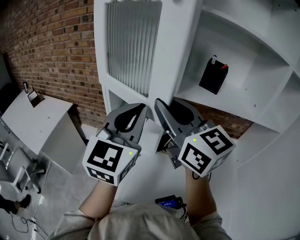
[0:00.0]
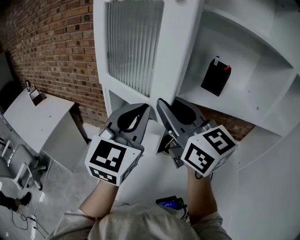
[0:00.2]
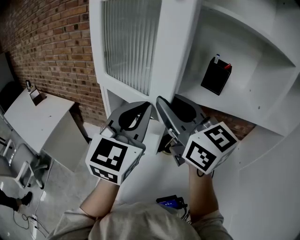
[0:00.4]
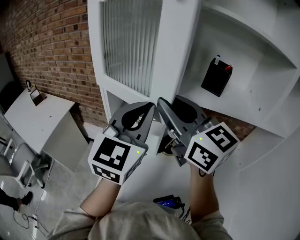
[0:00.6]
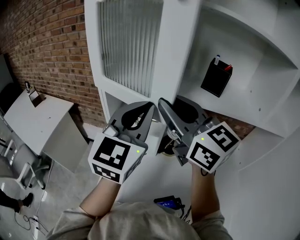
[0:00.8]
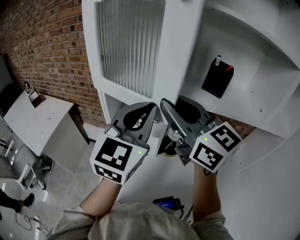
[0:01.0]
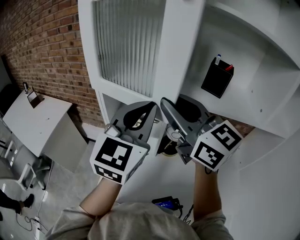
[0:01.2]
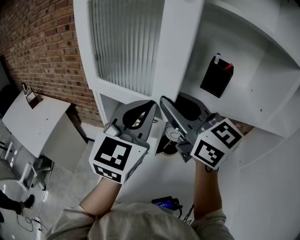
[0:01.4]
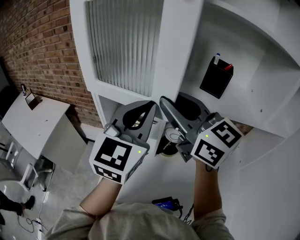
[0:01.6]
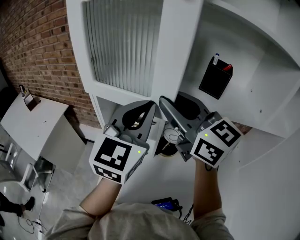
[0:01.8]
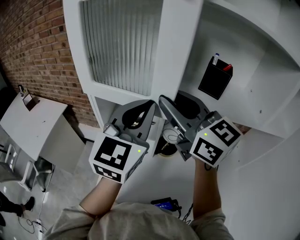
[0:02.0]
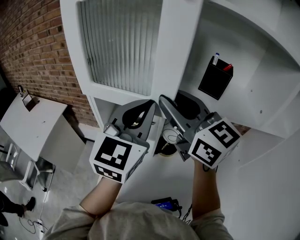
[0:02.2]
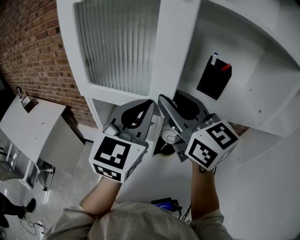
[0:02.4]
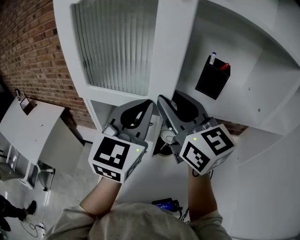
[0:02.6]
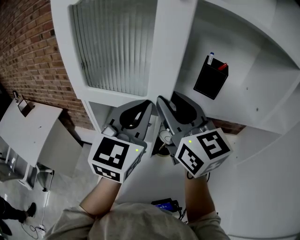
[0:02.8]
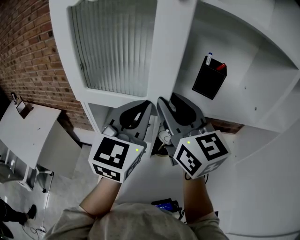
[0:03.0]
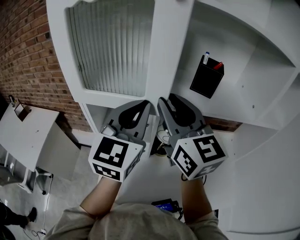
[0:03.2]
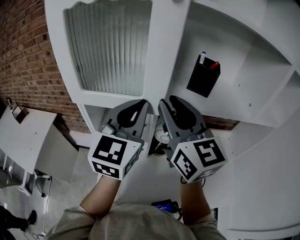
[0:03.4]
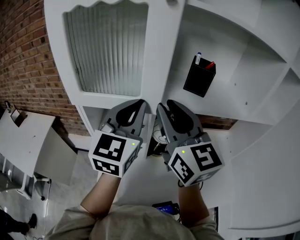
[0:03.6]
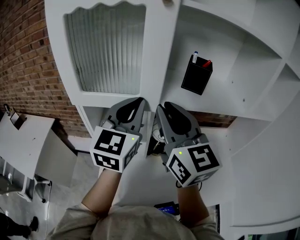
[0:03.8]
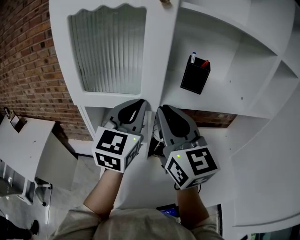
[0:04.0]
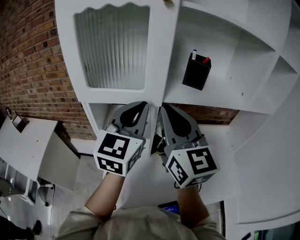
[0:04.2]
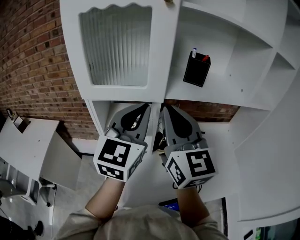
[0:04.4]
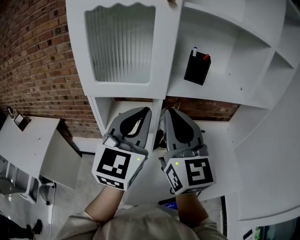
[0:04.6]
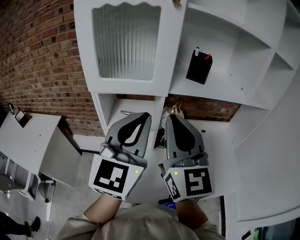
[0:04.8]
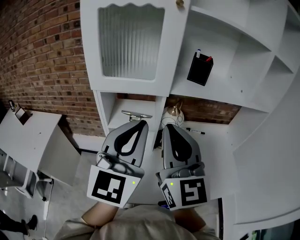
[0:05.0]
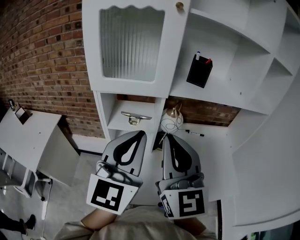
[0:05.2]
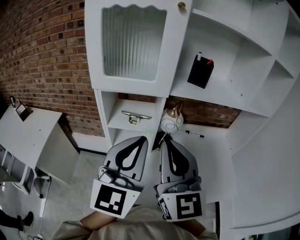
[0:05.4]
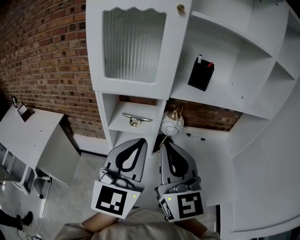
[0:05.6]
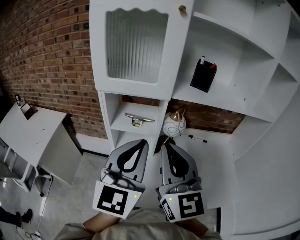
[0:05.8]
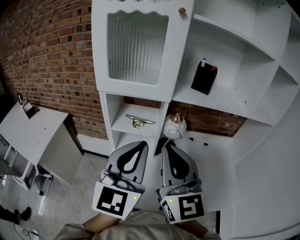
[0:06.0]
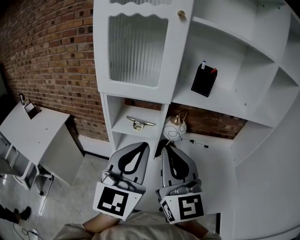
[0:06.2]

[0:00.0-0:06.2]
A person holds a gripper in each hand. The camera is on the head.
0.0 to 1.6 s: The right gripper shifts about 5 cm forward, while the left gripper is displaced forward and to the right by about 10 cm.
1.6 to 3.2 s: The right gripper changes its angle by approximately 20 degrees.
3.2 to 4.6 s: The two grippers go approximately 10 cm backward. The right gripper closes its fingers.
4.6 to 6.2 s: The left gripper is displaced backward by roughly 10 cm, while the right gripper goes some 10 cm backward and downward.

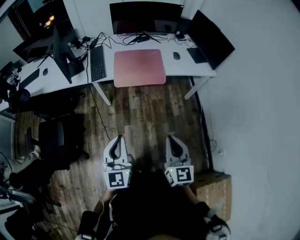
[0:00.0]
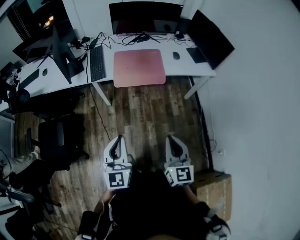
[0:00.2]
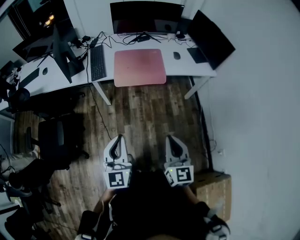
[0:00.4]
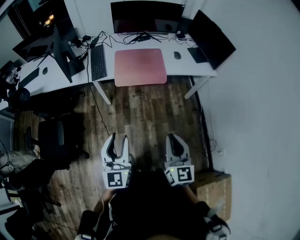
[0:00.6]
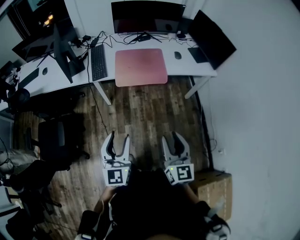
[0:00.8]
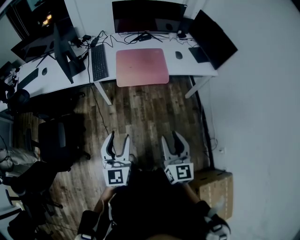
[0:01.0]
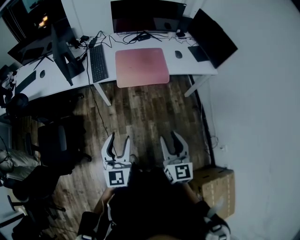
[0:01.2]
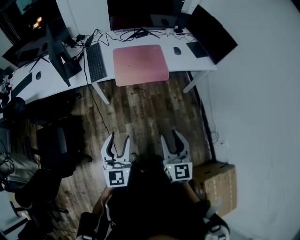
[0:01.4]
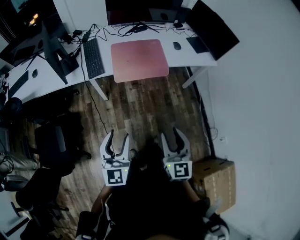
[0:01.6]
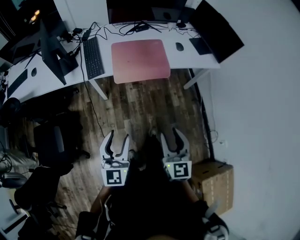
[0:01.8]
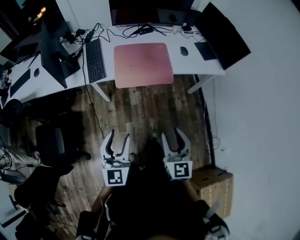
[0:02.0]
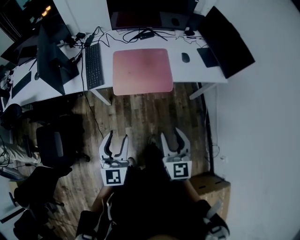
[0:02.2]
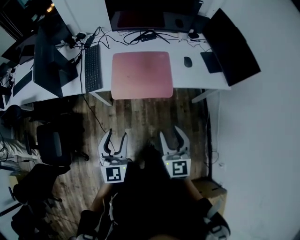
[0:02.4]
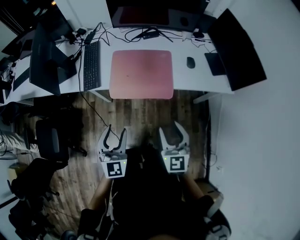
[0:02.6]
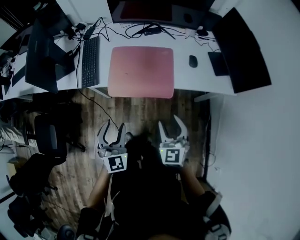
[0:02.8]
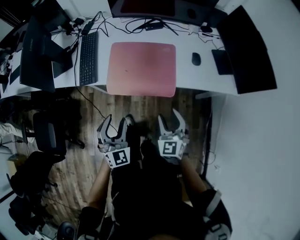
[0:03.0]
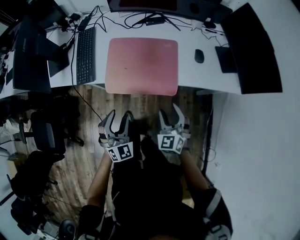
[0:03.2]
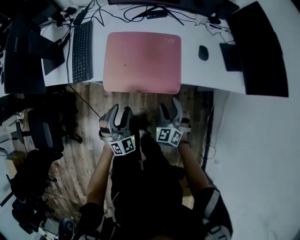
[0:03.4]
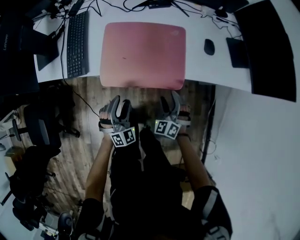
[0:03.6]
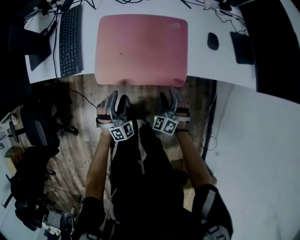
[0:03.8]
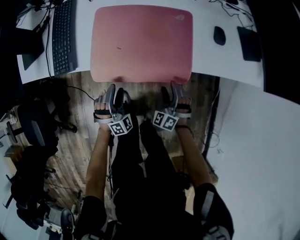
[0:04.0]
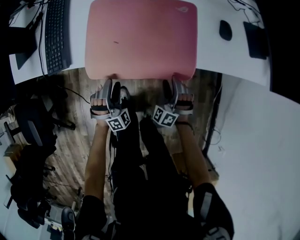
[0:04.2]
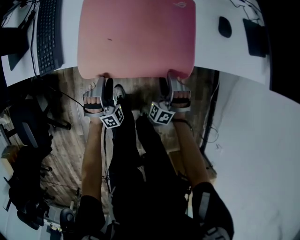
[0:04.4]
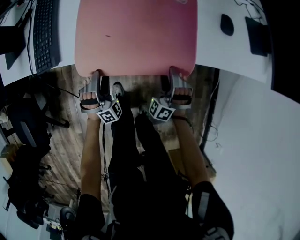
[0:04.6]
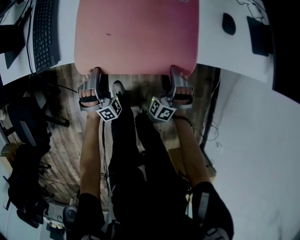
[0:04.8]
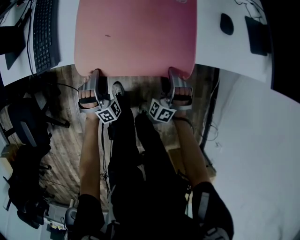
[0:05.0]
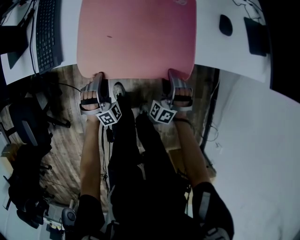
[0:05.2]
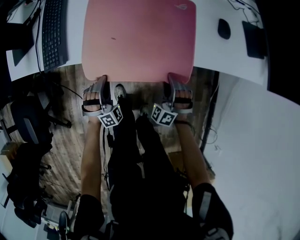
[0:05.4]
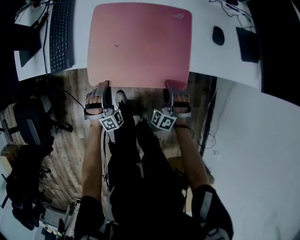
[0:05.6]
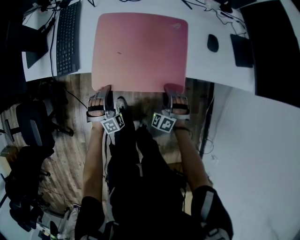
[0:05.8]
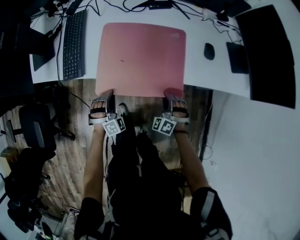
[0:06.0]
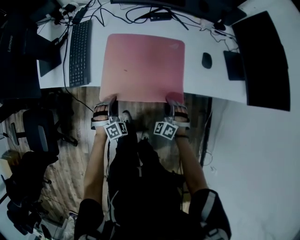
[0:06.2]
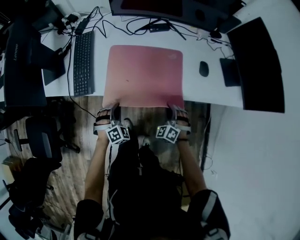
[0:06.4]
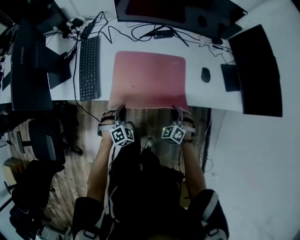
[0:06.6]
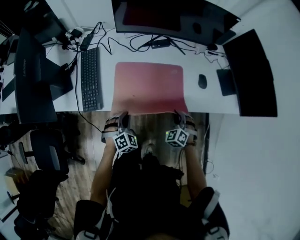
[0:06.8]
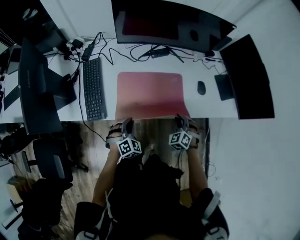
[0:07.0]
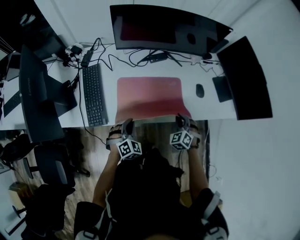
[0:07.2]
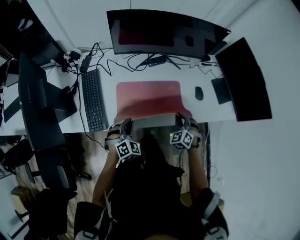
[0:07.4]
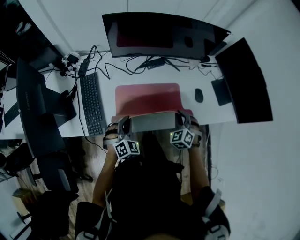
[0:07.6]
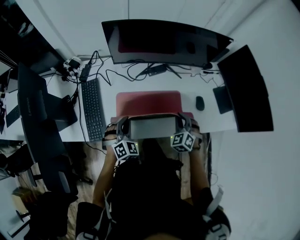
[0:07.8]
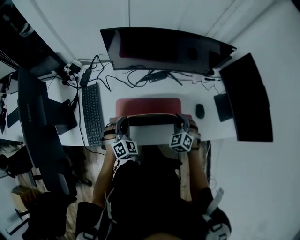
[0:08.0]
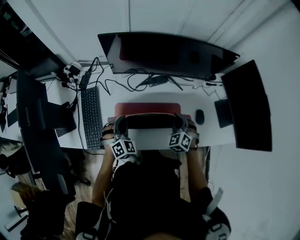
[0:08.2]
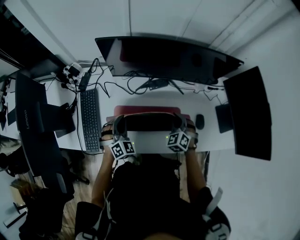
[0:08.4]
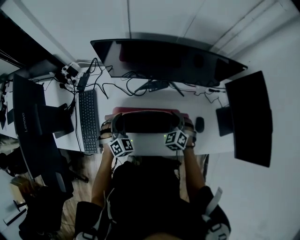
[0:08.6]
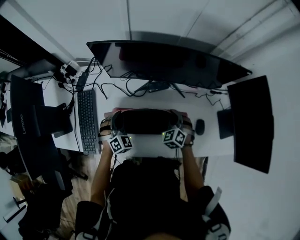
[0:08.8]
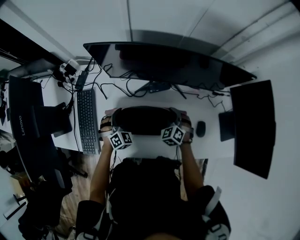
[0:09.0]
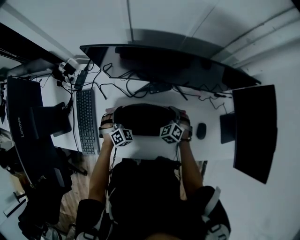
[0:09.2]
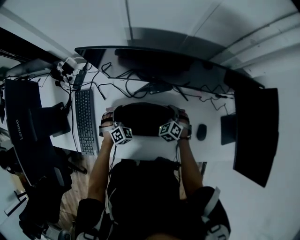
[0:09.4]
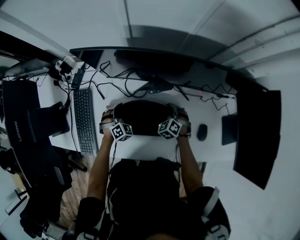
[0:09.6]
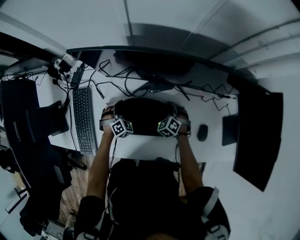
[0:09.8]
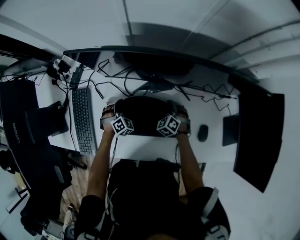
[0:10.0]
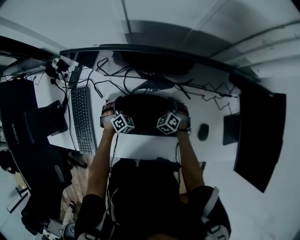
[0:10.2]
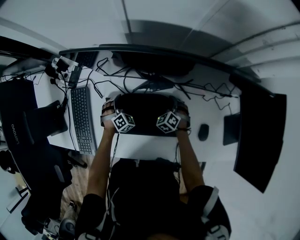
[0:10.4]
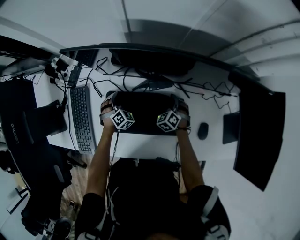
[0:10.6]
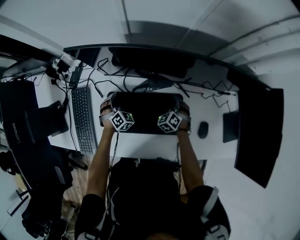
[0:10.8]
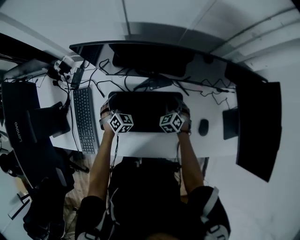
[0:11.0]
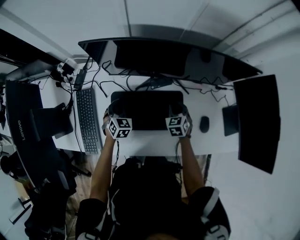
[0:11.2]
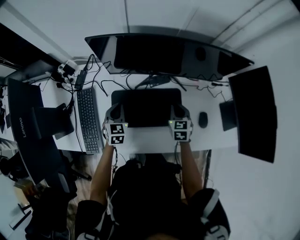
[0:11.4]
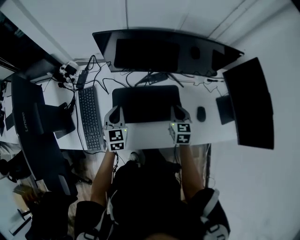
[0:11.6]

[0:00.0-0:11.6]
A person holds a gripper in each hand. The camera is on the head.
0.0 to 1.4 s: The two grippers go some 10 cm to the left. The right gripper opens up, while the left gripper opens its fingers.
1.4 to 2.8 s: Both grippers move forward and to the right, some 30 cm. The right gripper rotates roughly 30 degrees. Meanwhile the left gripper swivels approximately 30 degrees.
2.8 to 4.4 s: Both grippers travel together downward and forward, approximately 40 cm. The right gripper twists approximately 50 degrees counterclockwise, seen from behind. The left gripper twists about 50 degrees clockwise, seen from behind.
4.4 to 5.8 s: The left gripper ends up some 5 cm from where it was, and closes its fingers; the right gripper ends up about 5 cm from where it was, and closes.
5.8 to 7.2 s: The two grippers go about 20 cm upward and forward. The left gripper swivels some 30 degrees, while the right gripper changes its angle by approximately 30 degrees.
7.2 to 8.8 s: Both grippers travel together forward, roughly 25 cm.
8.8 to 10.2 s: The two grippers go roughly 15 cm downward and forward.
10.2 to 11.6 s: Both grippers travel together upward and backward, roughly 25 cm. The left gripper rolls counterclockwise, seen from behind, by roughly 40 degrees, while the right gripper rotates around the line of its fingers by about 50 degrees, clockwise from behind.

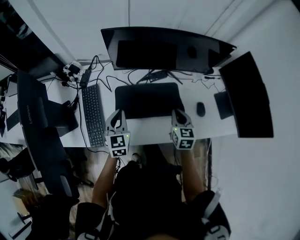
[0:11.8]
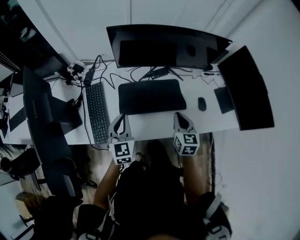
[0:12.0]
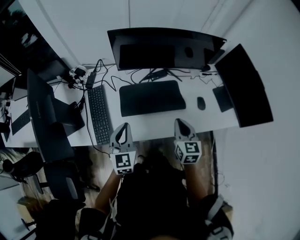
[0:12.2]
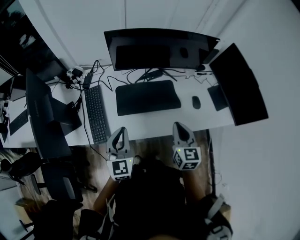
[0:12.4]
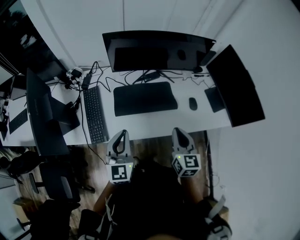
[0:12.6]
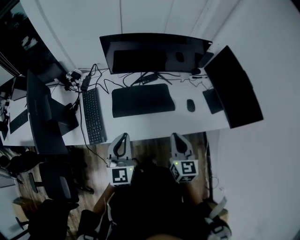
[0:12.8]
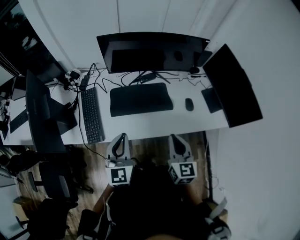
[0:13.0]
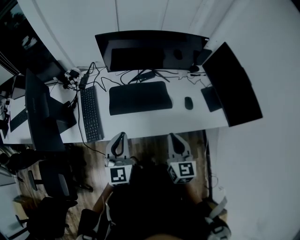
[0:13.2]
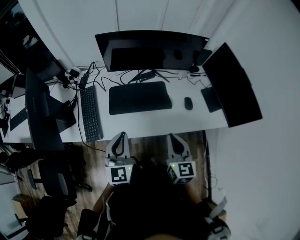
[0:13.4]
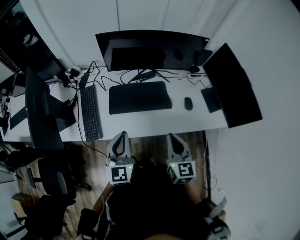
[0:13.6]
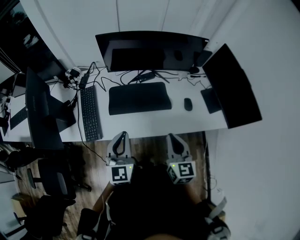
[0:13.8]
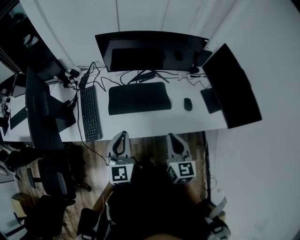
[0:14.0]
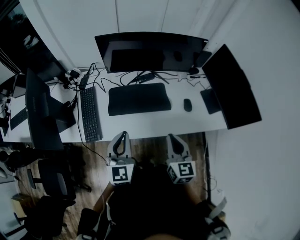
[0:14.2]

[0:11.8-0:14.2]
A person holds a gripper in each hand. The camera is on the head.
11.8 to 13.0 s: The two grippers go approximately 25 cm backward and upward.
13.0 to 14.2 s: The grippers move only a little.

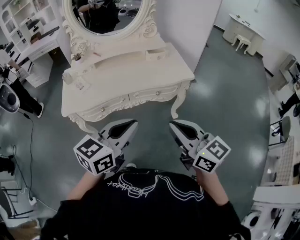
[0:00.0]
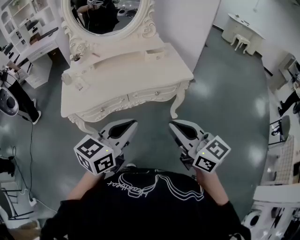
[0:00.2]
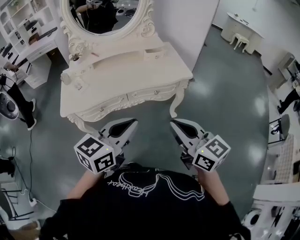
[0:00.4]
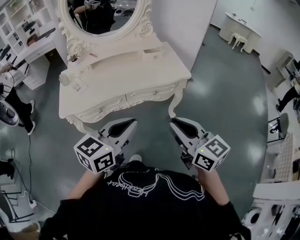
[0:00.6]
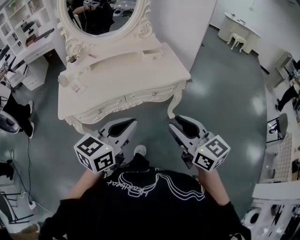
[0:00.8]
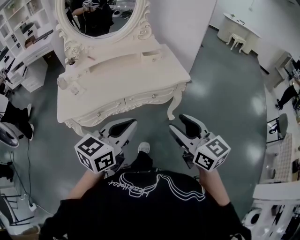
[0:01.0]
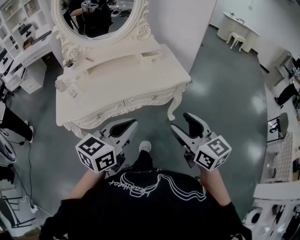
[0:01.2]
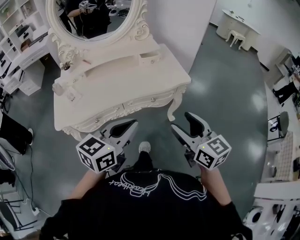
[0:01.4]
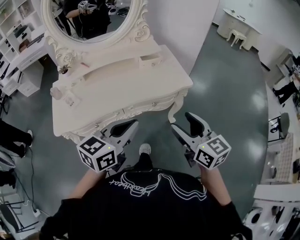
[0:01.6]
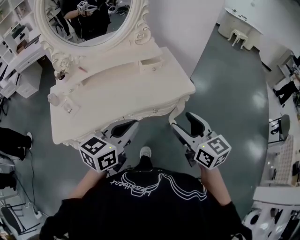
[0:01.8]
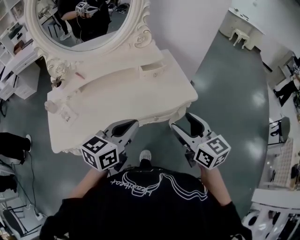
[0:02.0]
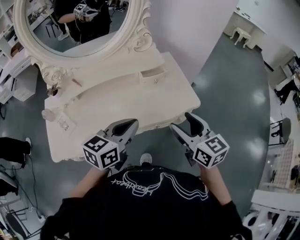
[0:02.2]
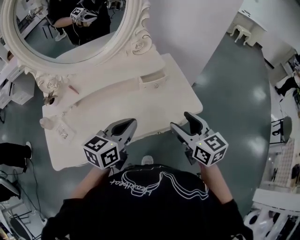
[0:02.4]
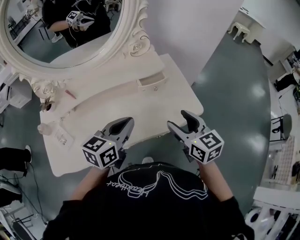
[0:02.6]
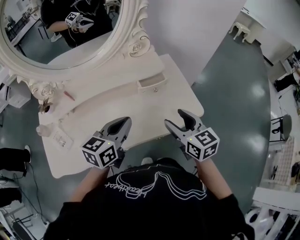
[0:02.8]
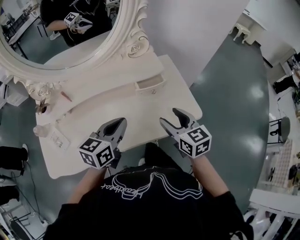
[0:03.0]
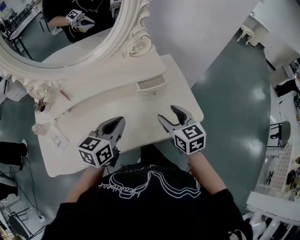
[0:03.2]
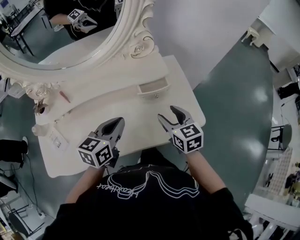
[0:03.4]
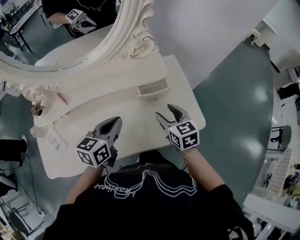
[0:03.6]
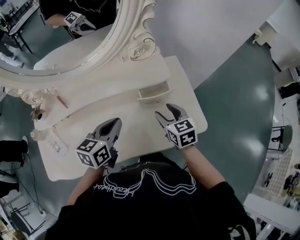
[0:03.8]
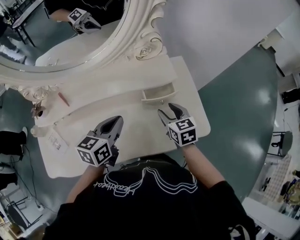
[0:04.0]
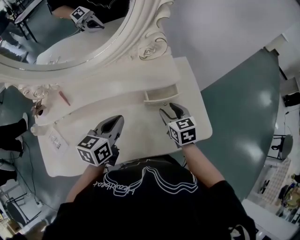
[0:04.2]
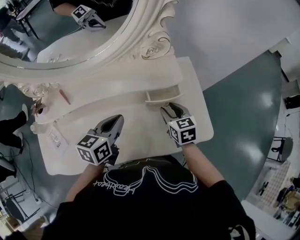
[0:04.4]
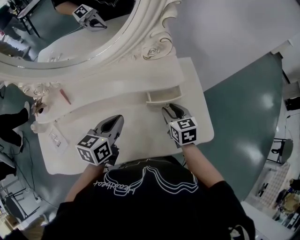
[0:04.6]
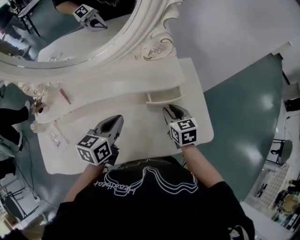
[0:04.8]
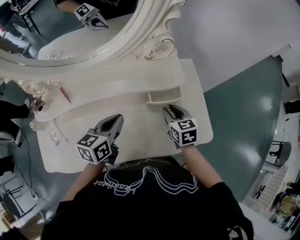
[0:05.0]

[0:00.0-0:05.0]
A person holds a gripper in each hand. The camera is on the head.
0.0 to 1.6 s: The grippers both shift forward by about 15 cm. The right gripper opens.
1.6 to 3.4 s: The right gripper heads forward and downward, covering approximately 40 cm; the left gripper is displaced forward by some 35 cm.
3.4 to 5.0 s: The left gripper travels forward by approximately 5 cm. The right gripper goes about 10 cm forward and downward, and closes.
